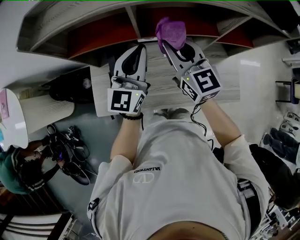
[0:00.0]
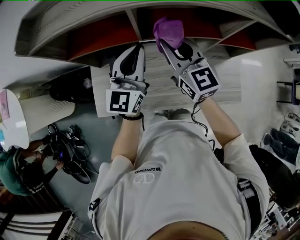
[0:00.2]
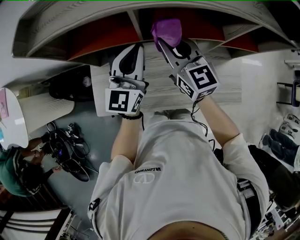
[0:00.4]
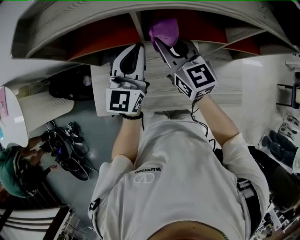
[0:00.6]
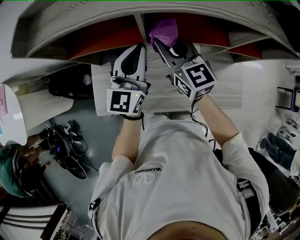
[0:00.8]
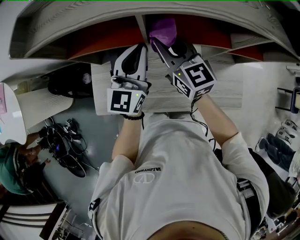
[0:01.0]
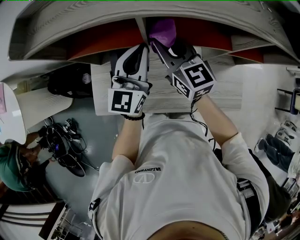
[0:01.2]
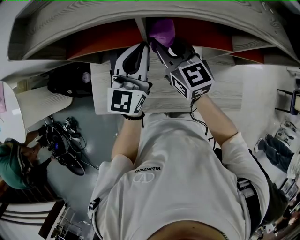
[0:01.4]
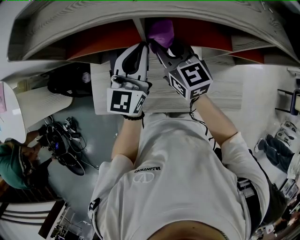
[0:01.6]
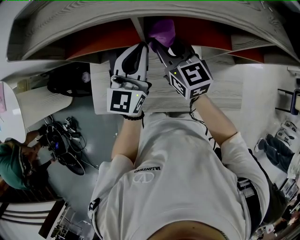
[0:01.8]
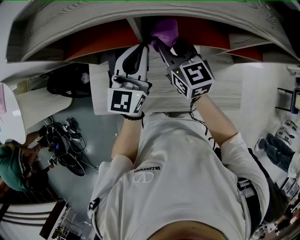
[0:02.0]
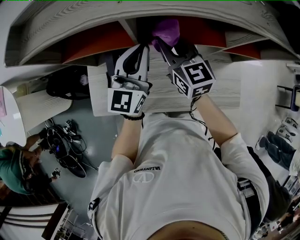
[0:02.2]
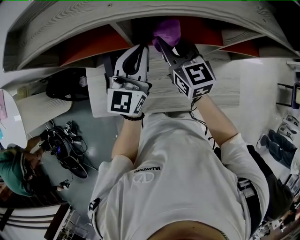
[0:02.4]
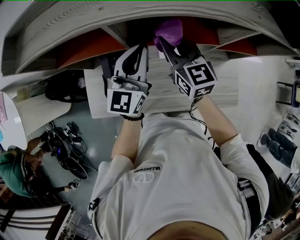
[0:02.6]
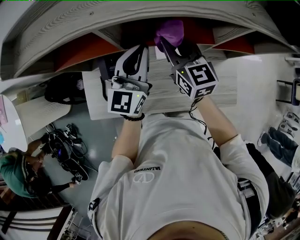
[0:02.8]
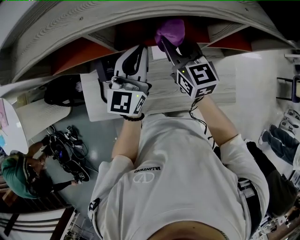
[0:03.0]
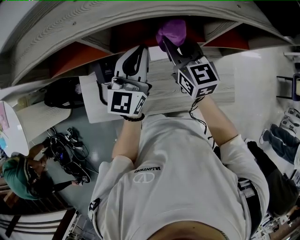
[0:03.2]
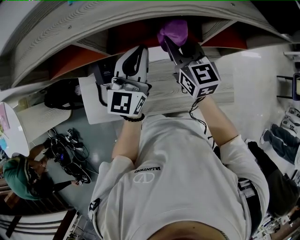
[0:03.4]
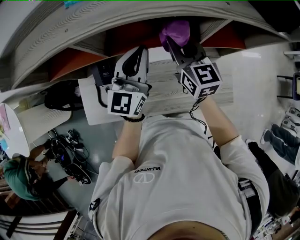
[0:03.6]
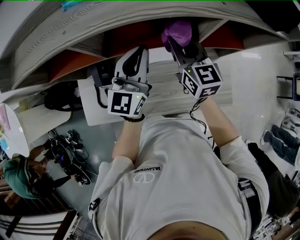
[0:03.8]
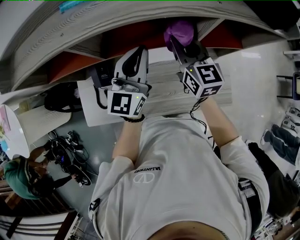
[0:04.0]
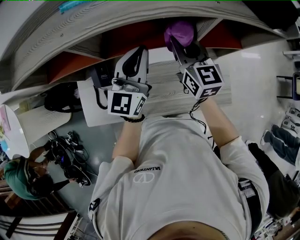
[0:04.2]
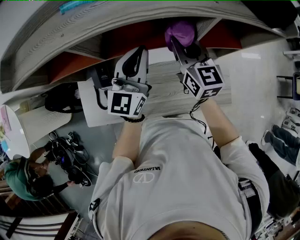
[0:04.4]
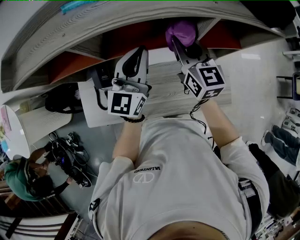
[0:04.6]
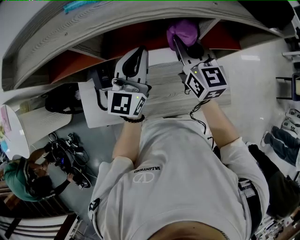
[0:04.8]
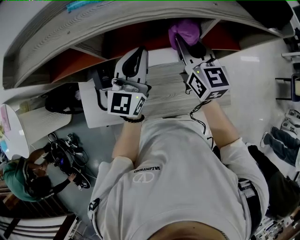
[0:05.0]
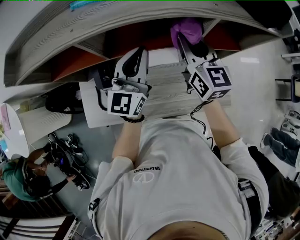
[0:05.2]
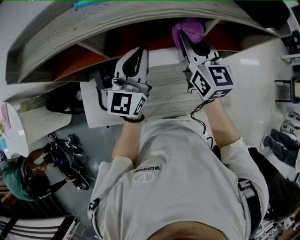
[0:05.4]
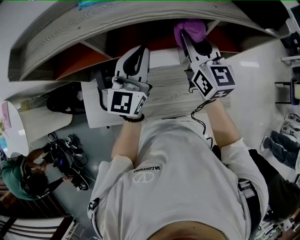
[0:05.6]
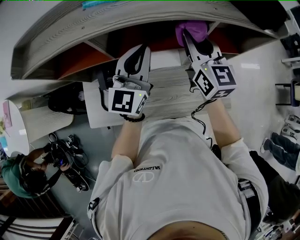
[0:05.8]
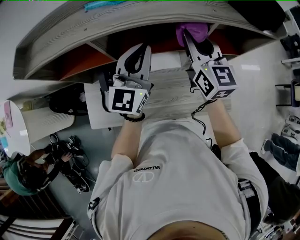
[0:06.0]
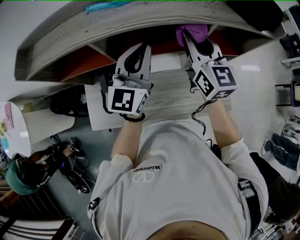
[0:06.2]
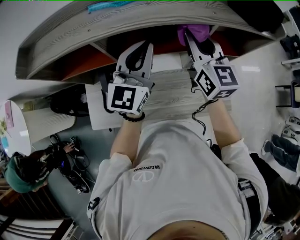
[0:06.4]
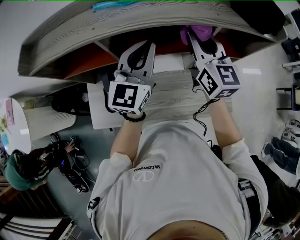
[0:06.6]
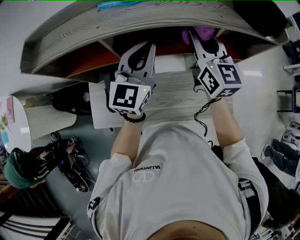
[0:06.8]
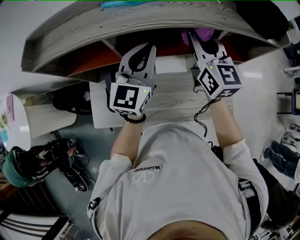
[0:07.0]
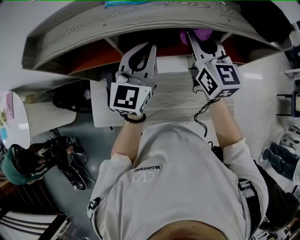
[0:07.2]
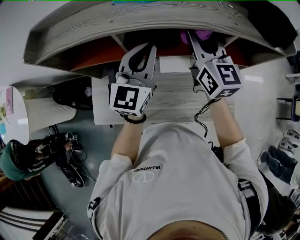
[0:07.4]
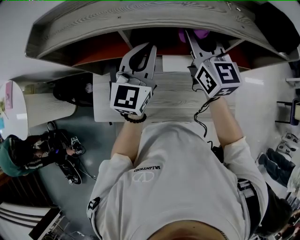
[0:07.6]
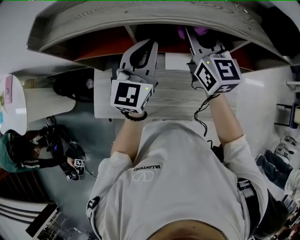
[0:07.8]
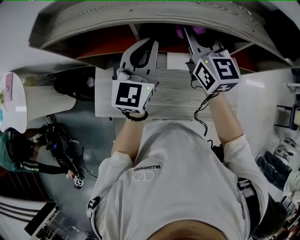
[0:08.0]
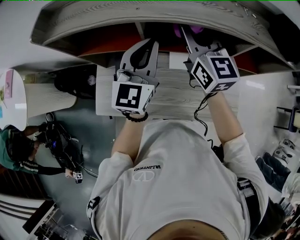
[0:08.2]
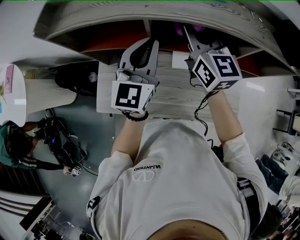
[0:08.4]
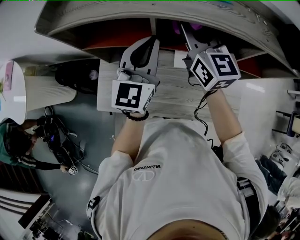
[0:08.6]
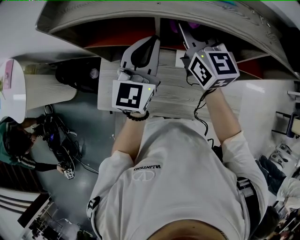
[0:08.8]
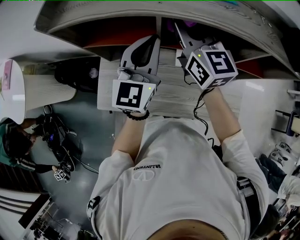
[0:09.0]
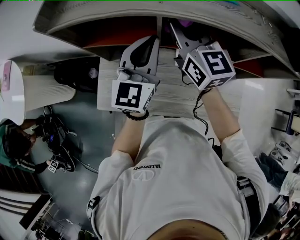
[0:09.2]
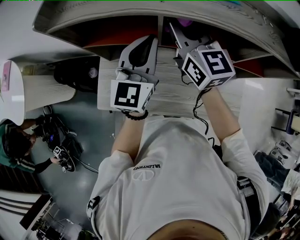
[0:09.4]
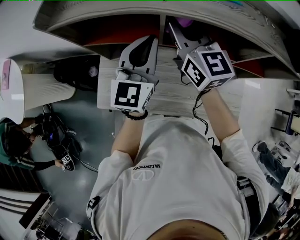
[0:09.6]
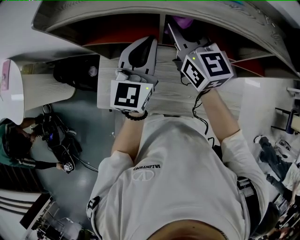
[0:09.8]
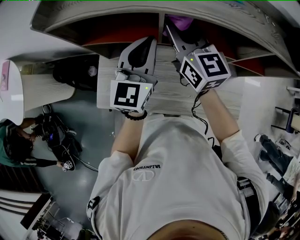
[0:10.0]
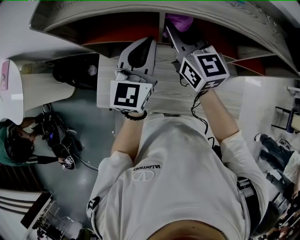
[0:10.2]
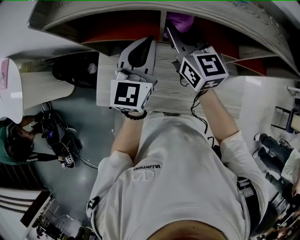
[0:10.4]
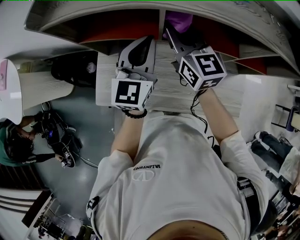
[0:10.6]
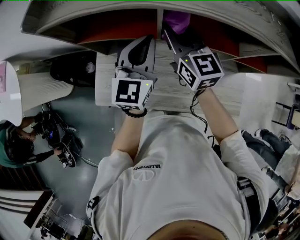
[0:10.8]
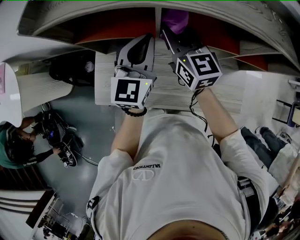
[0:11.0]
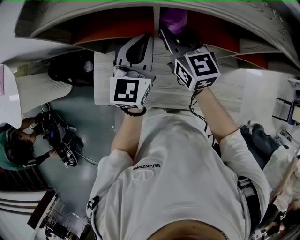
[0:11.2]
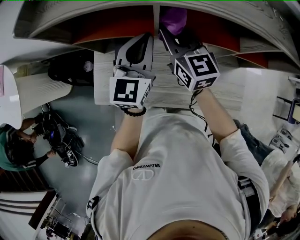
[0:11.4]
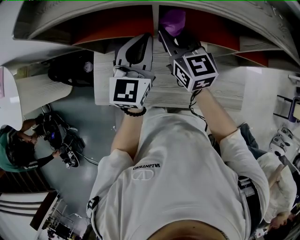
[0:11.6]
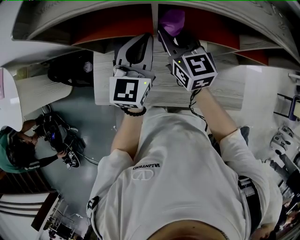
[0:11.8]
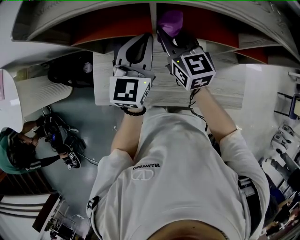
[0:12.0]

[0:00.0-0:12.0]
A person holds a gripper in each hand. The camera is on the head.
0:00.0 to 0:01.6: The right gripper shifts roughly 10 cm forward and downward, while the left gripper is displaced forward by roughly 5 cm.
0:01.6 to 0:03.0: The grippers both shift to the right by approximately 10 cm.
0:03.0 to 0:04.4: The left gripper goes roughly 5 cm to the right; the right gripper moves to the right, roughly 10 cm.
0:04.4 to 0:06.0: The right gripper moves upward, approximately 10 cm; the left gripper is displaced upward by approximately 5 cm.
0:06.0 to 0:07.6: The two grippers go about 10 cm to the left.
0:07.6 to 0:09.0: The left gripper is displaced to the left by approximately 10 cm. Meanwhile the right gripper travels to the left by roughly 15 cm.
0:09.0 to 0:10.4: The right gripper is displaced downward by approximately 5 cm.
0:10.4 to 0:12.0: The right gripper is displaced downward by roughly 5 cm.

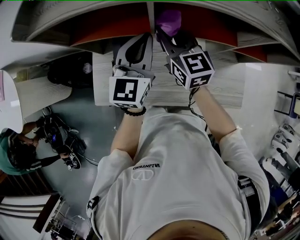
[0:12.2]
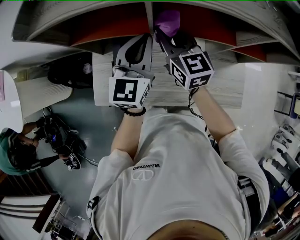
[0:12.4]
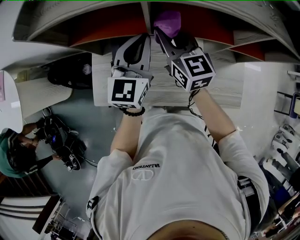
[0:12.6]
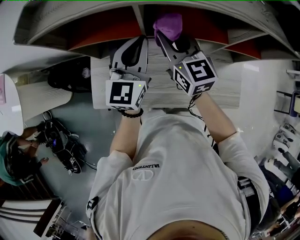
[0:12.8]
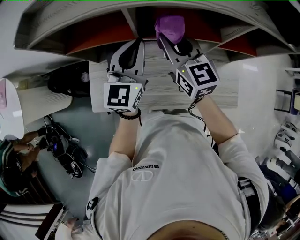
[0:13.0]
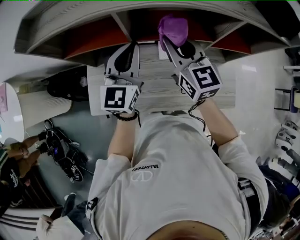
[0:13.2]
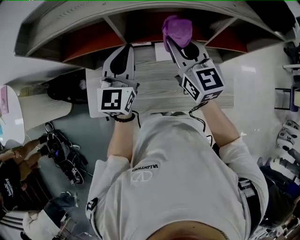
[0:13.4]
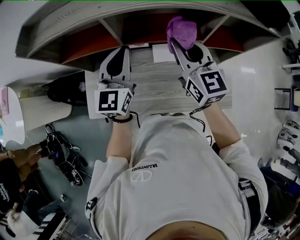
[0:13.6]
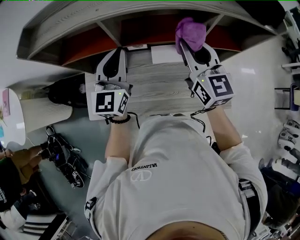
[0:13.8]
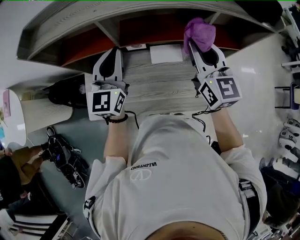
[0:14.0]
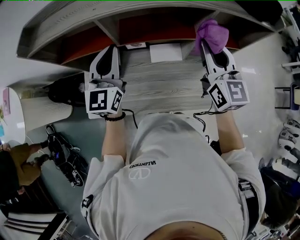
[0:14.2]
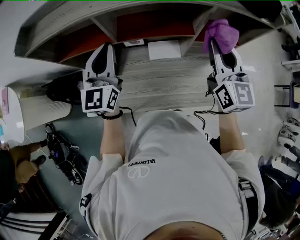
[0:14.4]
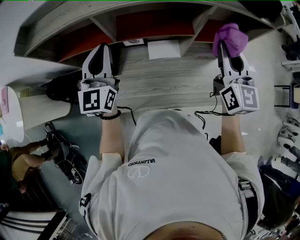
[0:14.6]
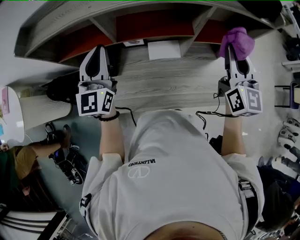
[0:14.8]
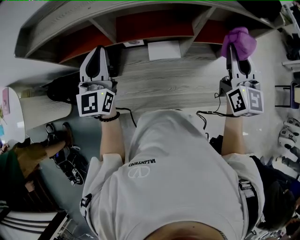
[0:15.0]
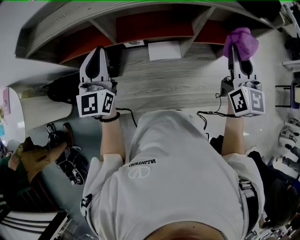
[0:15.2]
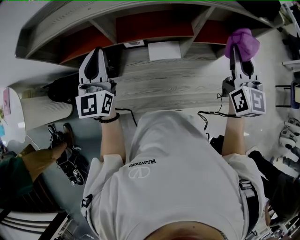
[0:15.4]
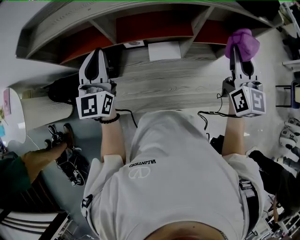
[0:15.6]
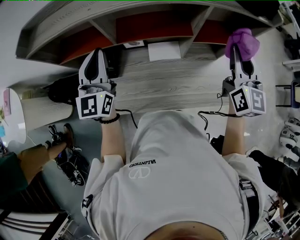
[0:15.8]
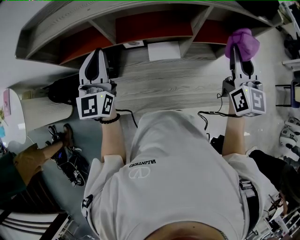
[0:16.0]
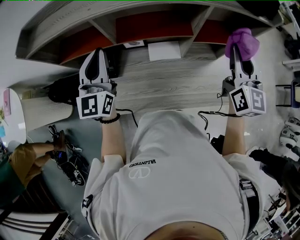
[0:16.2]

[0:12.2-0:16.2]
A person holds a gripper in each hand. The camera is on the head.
0:12.2 to 0:13.6: The left gripper moves roughly 5 cm, while the right gripper is displaced to the right, upward and backward by roughly 20 cm.
0:13.6 to 0:14.8: The right gripper is displaced to the right by some 20 cm, and rotates approximately 20 degrees, while the left gripper ends up some 5 cm from where it was.
0:14.8 to 0:16.2: The grippers move only a little.

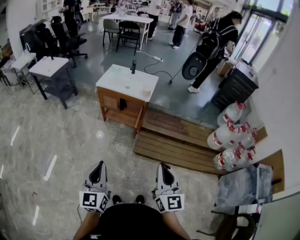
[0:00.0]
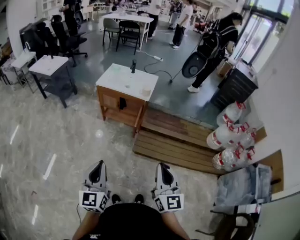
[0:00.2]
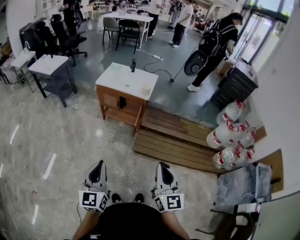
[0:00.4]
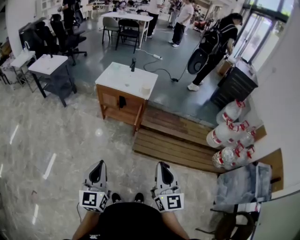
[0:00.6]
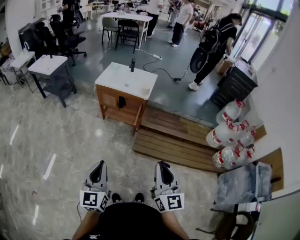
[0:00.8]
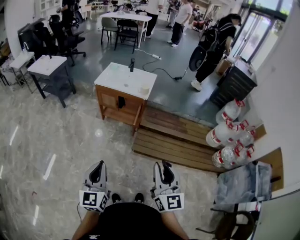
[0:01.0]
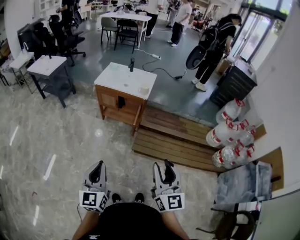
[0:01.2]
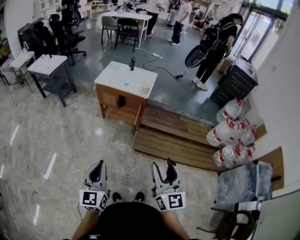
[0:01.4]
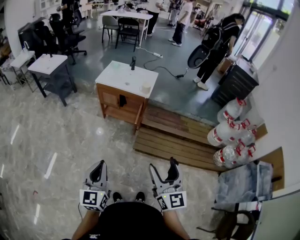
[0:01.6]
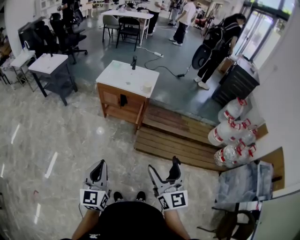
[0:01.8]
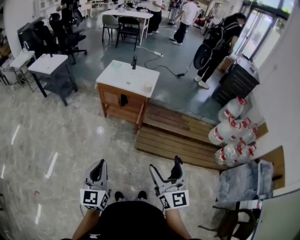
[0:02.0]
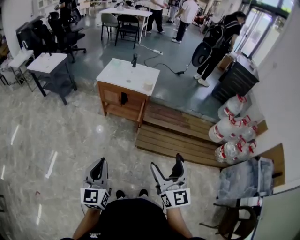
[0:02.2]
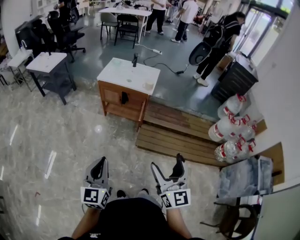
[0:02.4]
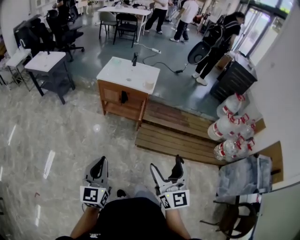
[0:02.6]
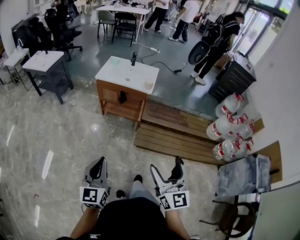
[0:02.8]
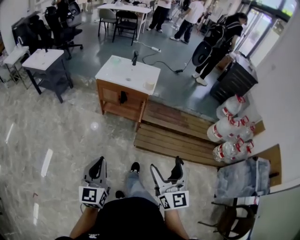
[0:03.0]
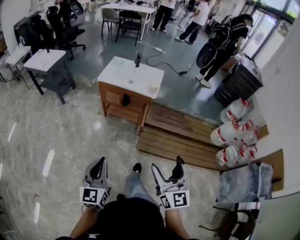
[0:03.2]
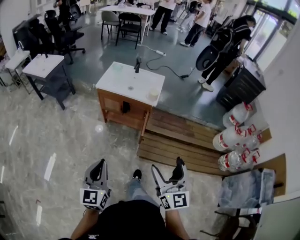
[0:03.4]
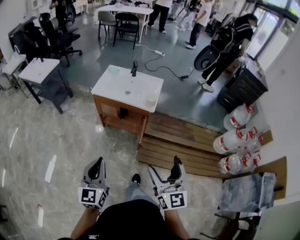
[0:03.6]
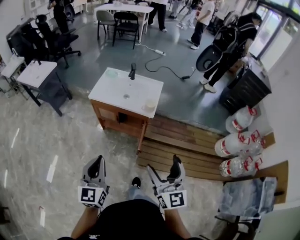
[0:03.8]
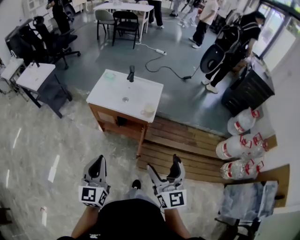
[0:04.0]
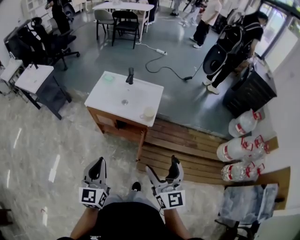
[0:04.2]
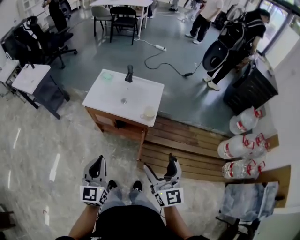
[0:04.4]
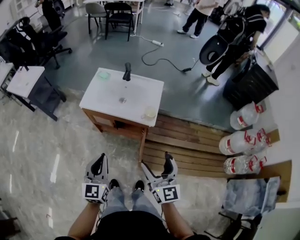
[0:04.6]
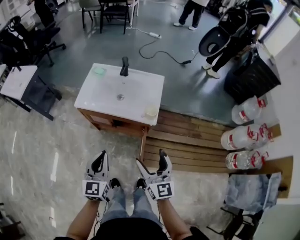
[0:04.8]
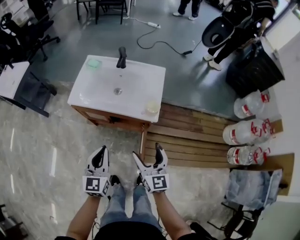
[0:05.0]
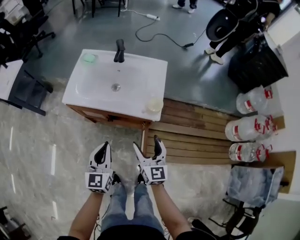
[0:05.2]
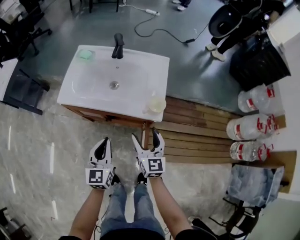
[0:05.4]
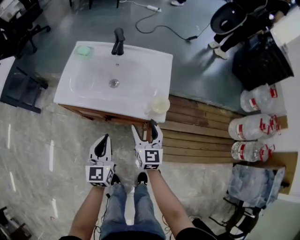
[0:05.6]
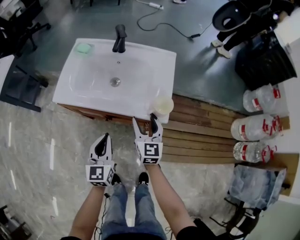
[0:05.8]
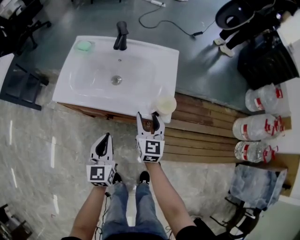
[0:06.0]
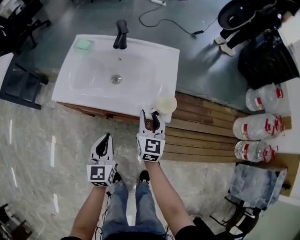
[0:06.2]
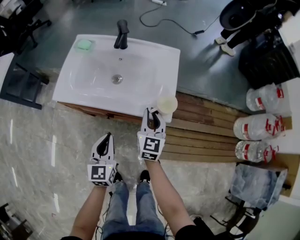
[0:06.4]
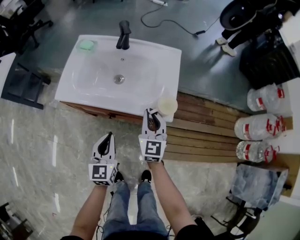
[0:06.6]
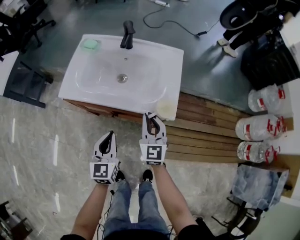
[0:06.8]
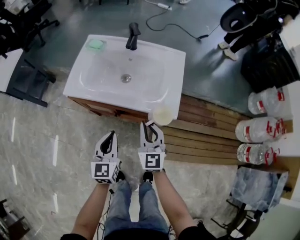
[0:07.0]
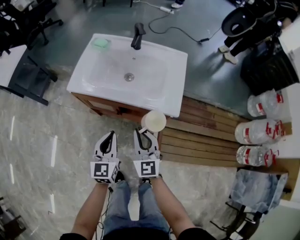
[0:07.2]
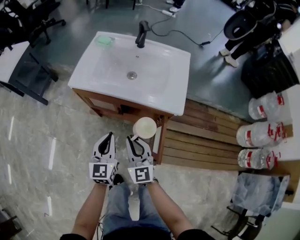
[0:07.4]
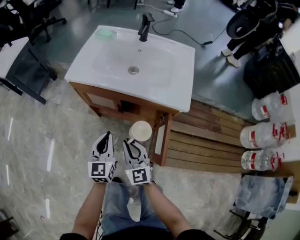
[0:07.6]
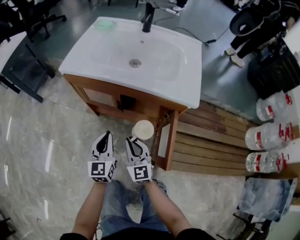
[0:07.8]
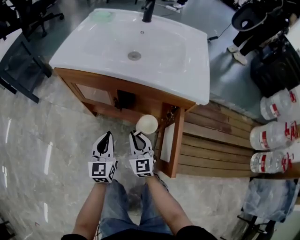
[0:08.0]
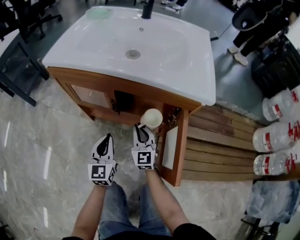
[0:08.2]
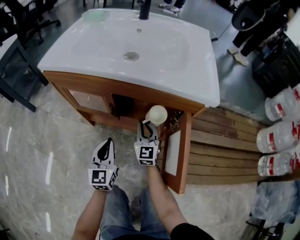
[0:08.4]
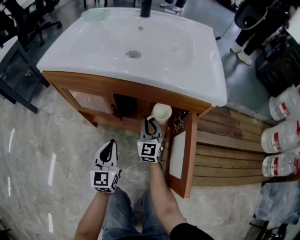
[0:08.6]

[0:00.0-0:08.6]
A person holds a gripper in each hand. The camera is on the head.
0:00.0 to 0:01.4: The right gripper opens its fingers.
0:01.4 to 0:02.8: Both grippers travel together to the left, approximately 5 cm. The right gripper opens.
0:02.8 to 0:04.4: The pair of grippers is taken forward, roughly 40 cm.
0:04.4 to 0:05.8: Both grippers move downward and forward, approximately 40 cm. The right gripper rotates roughly 20 degrees.
0:05.8 to 0:07.2: The left gripper ends up approximately 5 cm from where it was, while the right gripper is displaced backward and to the left by some 15 cm, changes its angle by approximately 20 degrees, and closes.
0:07.2 to 0:08.6: The two grippers go approximately 35 cm downward.
